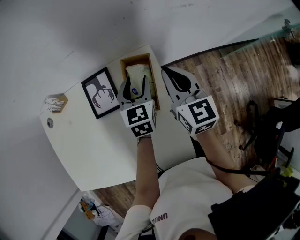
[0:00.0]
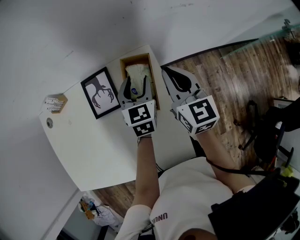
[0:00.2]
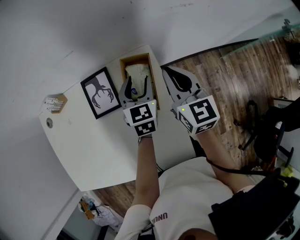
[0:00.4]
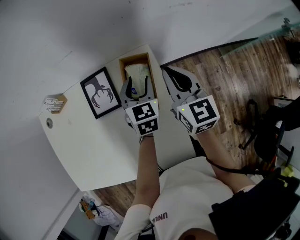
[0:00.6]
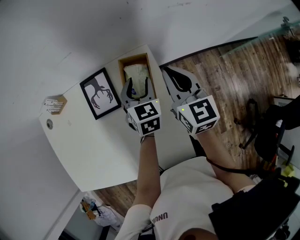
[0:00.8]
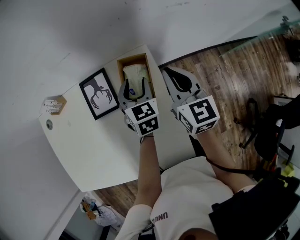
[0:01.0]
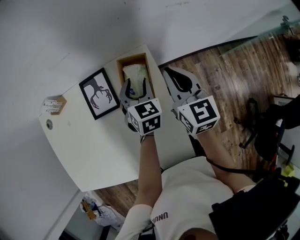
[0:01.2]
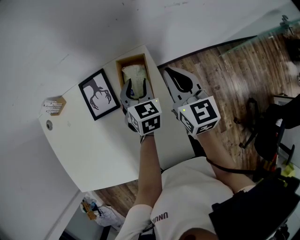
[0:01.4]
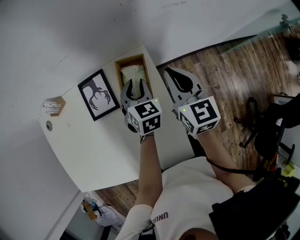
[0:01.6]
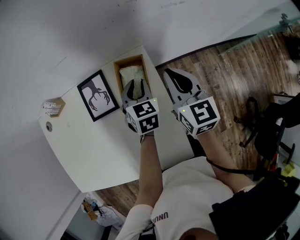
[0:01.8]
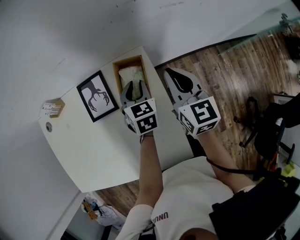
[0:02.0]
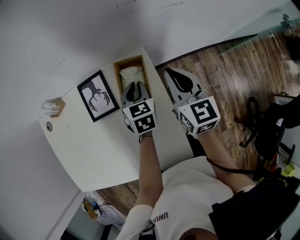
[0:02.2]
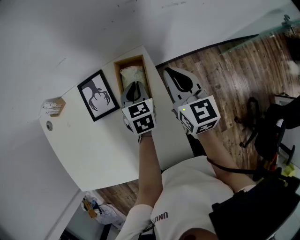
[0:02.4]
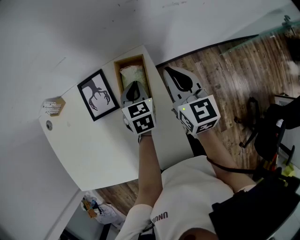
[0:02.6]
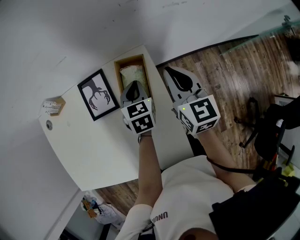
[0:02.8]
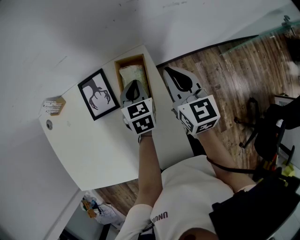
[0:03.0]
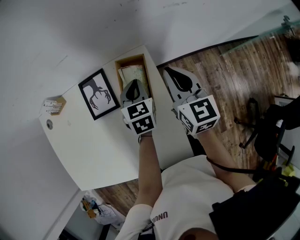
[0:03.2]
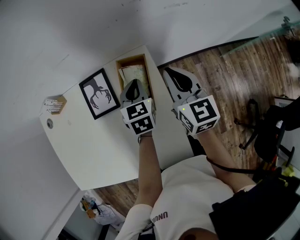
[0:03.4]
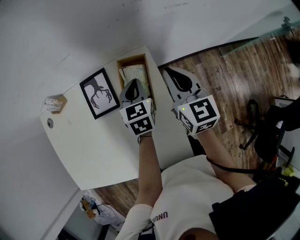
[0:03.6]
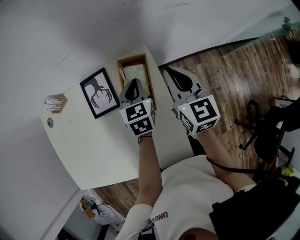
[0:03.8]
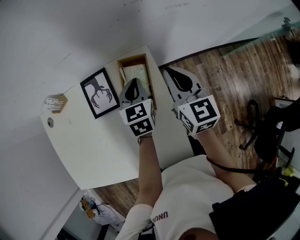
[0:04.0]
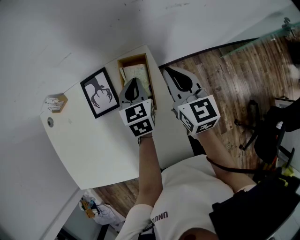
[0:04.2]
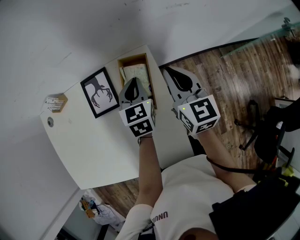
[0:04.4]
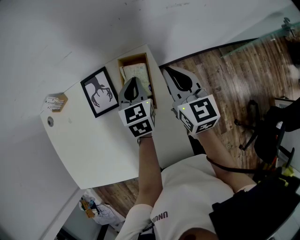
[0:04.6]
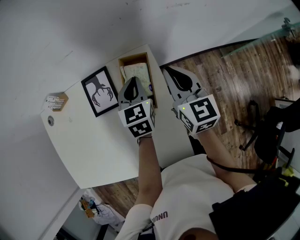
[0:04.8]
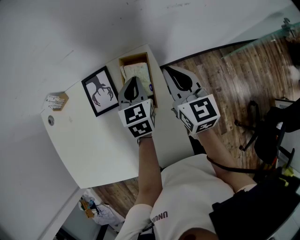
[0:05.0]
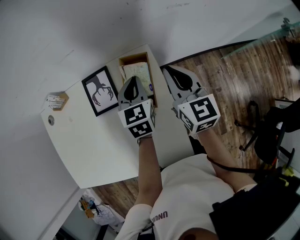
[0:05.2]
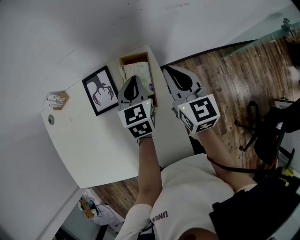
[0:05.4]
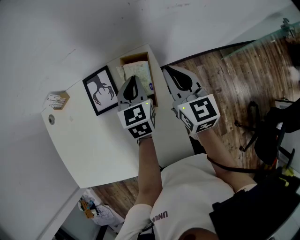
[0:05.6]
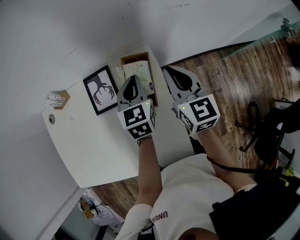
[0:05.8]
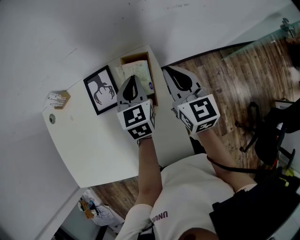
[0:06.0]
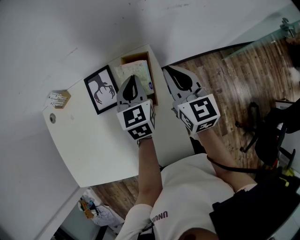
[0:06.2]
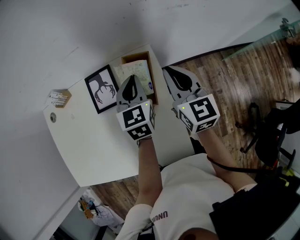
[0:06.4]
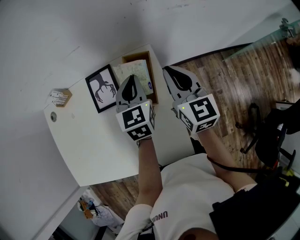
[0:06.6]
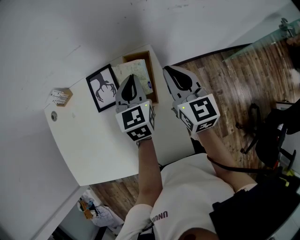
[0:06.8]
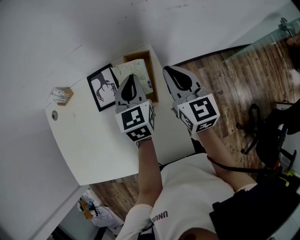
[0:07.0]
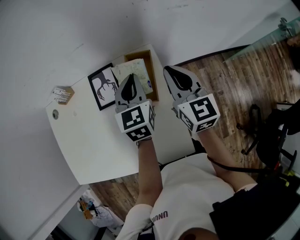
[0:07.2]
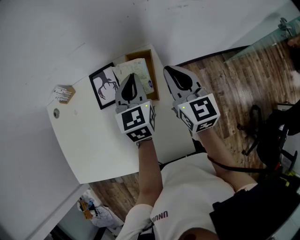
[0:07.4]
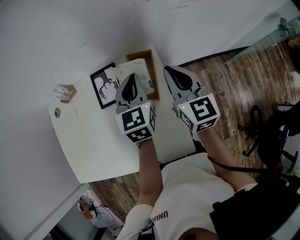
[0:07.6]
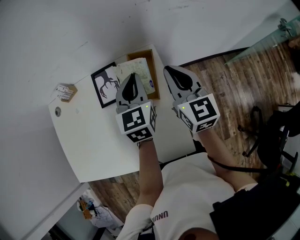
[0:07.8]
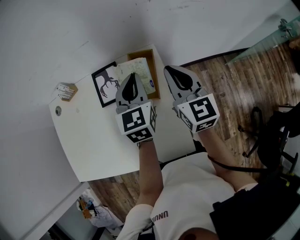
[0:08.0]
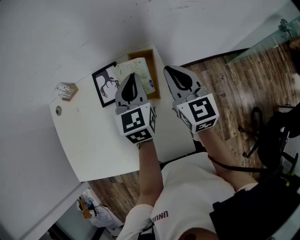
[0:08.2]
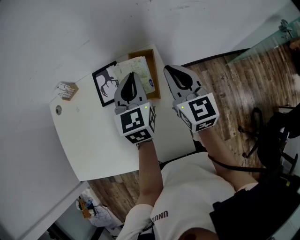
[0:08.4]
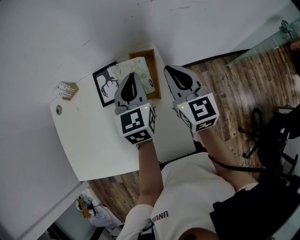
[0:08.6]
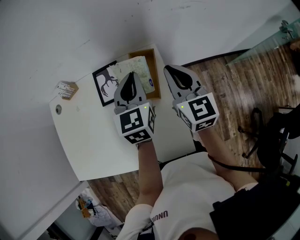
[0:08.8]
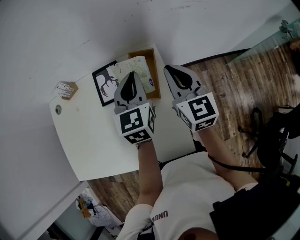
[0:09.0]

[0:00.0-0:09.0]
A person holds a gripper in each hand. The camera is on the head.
0:00.0 to 0:01.6: The left gripper closes.
0:01.6 to 0:03.0: The left gripper closes its fingers.
0:03.0 to 0:04.4: The grippers make only small movements.
0:04.4 to 0:06.0: The grippers stay close to where they were, moving slightly.
0:06.0 to 0:07.6: The left gripper heads upward, covering some 5 cm.
0:07.6 to 0:09.0: The grippers stay close to where they were, moving slightly.

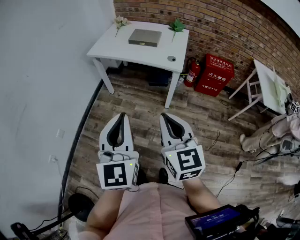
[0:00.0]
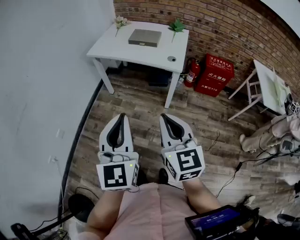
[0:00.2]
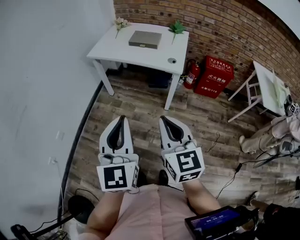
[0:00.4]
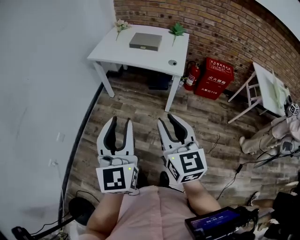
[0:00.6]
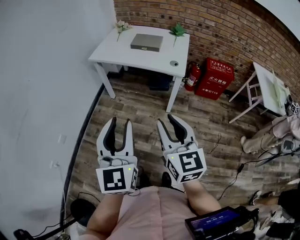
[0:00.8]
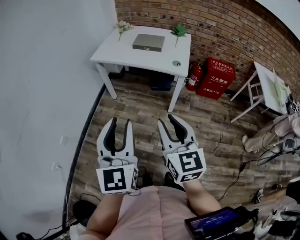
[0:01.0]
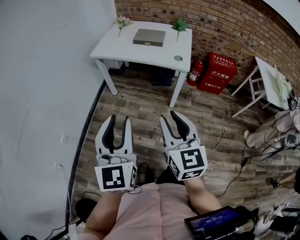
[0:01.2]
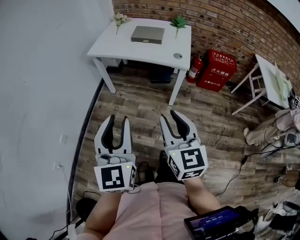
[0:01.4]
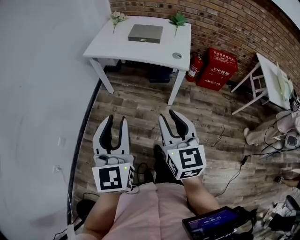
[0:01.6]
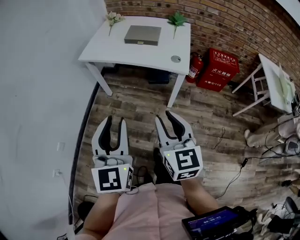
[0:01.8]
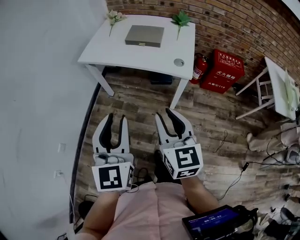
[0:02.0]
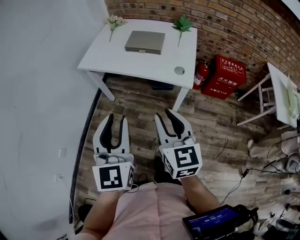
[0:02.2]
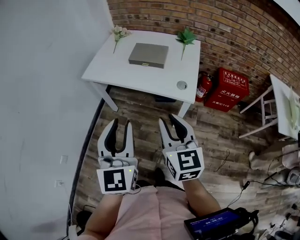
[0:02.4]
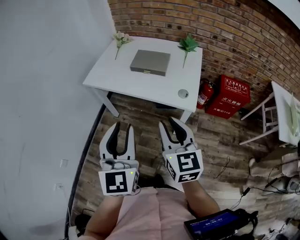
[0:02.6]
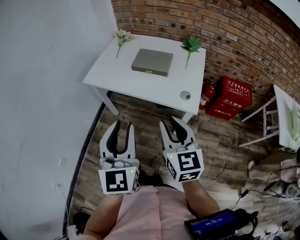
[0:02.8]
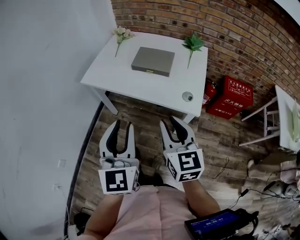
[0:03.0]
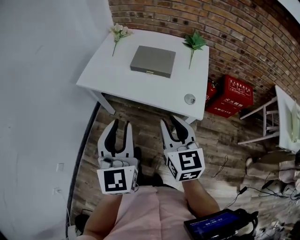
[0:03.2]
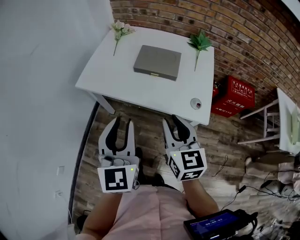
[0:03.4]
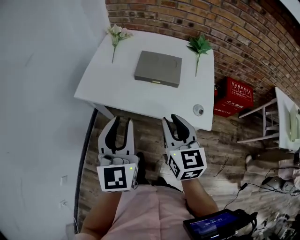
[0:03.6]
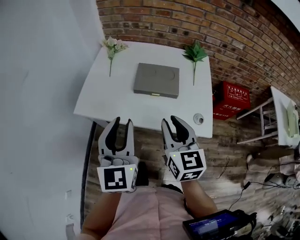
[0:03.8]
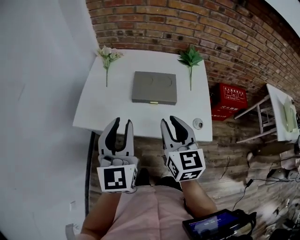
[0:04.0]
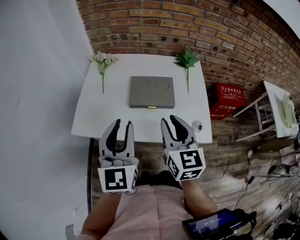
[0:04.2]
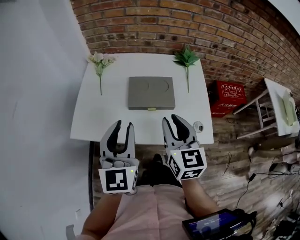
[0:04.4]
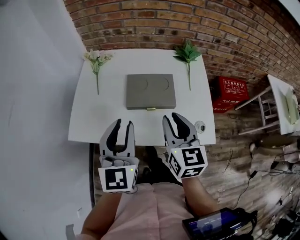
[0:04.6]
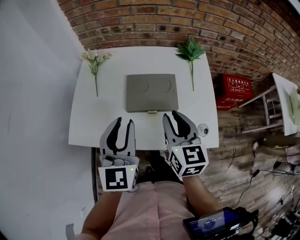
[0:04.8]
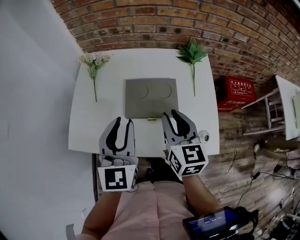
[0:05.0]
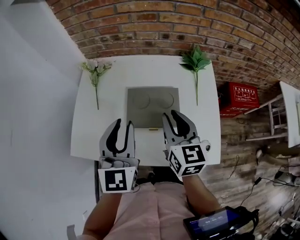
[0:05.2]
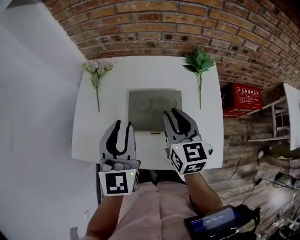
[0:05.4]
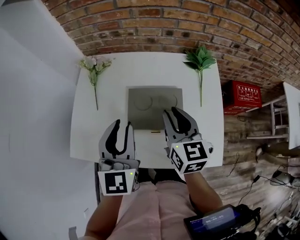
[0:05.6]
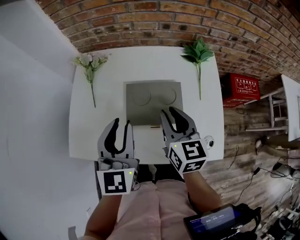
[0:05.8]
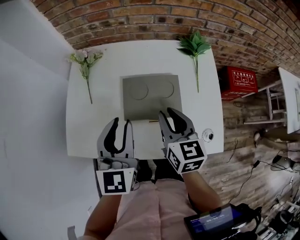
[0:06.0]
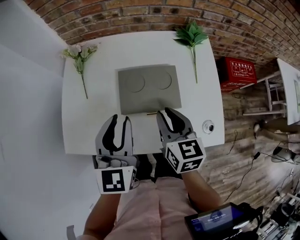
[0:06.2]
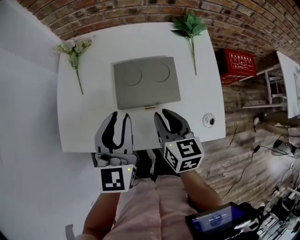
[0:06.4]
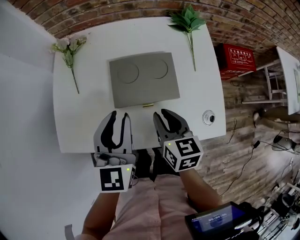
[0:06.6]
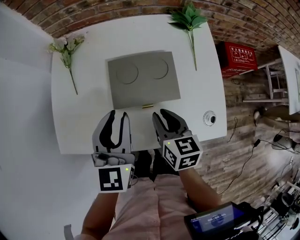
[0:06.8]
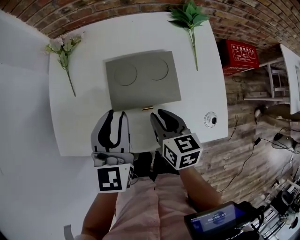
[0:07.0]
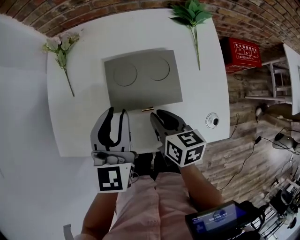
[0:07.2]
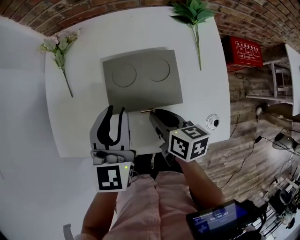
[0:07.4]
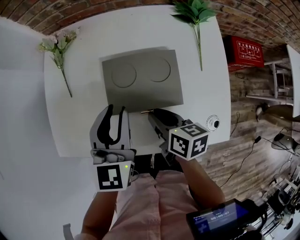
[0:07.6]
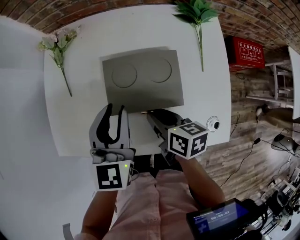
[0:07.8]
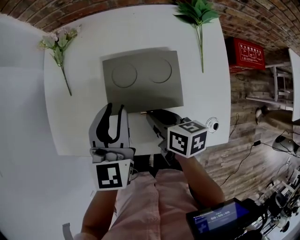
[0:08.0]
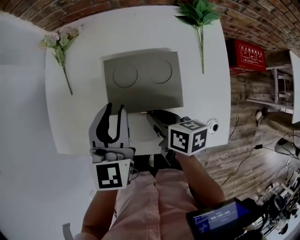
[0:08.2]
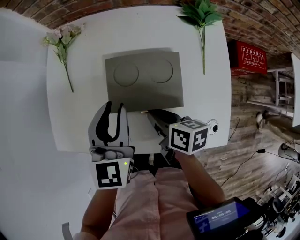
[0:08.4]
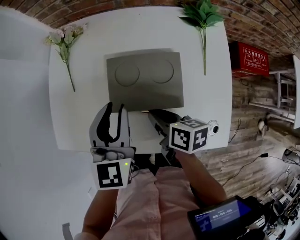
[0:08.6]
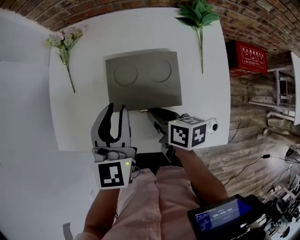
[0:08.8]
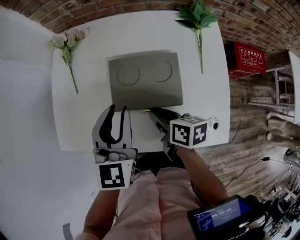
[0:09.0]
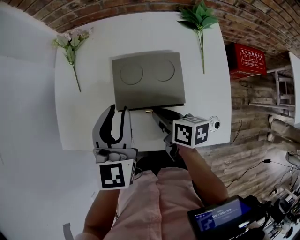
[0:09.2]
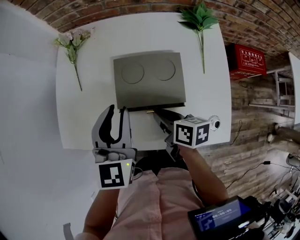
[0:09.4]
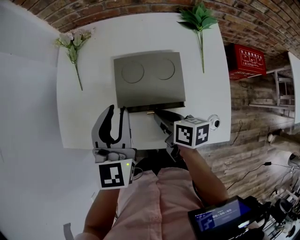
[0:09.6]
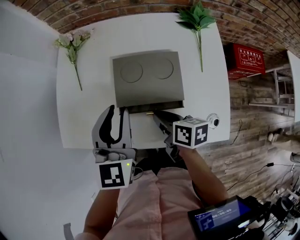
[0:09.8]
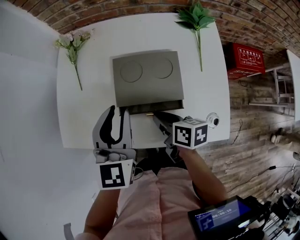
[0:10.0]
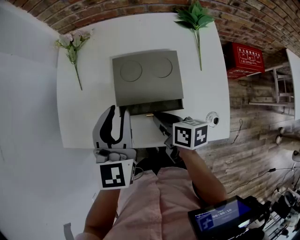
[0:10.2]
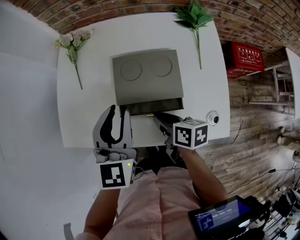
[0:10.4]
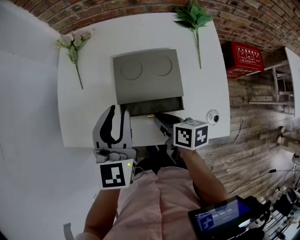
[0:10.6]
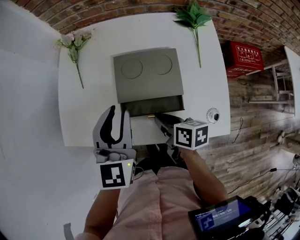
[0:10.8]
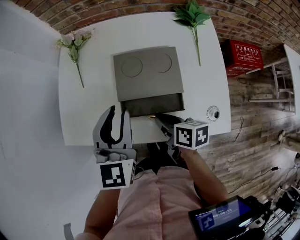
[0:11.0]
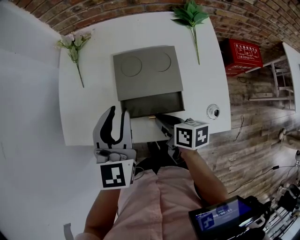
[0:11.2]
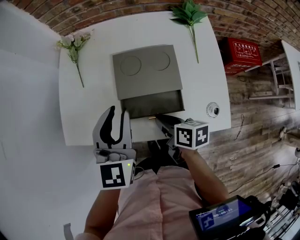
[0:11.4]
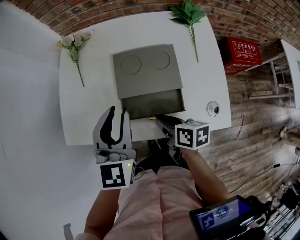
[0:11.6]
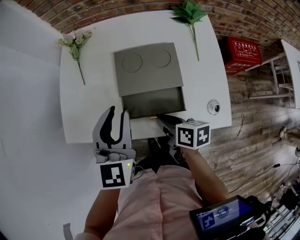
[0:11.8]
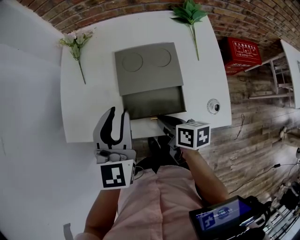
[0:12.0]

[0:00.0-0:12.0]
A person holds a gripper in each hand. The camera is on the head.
0:00.0 to 0:01.6: The left gripper is displaced forward and to the left by some 10 cm, and opens its fingers. The right gripper is displaced forward by approximately 5 cm, and opens its fingers.
0:01.6 to 0:03.0: The grippers both shift forward by some 25 cm.
0:03.0 to 0:04.4: Both grippers travel together forward, about 25 cm.
0:04.4 to 0:06.0: The two grippers go some 15 cm forward and downward.
0:06.0 to 0:07.6: The right gripper is displaced downward by some 15 cm, and swivels some 40 degrees, while the left gripper goes some 10 cm downward.
0:07.6 to 0:10.4: The grippers make only small movements.
0:10.4 to 0:12.0: The left gripper changes place by about 5 cm, while the right gripper goes approximately 5 cm backward.

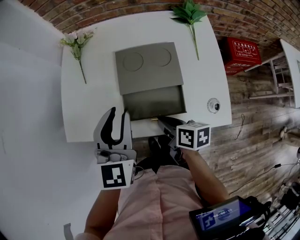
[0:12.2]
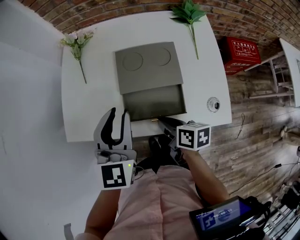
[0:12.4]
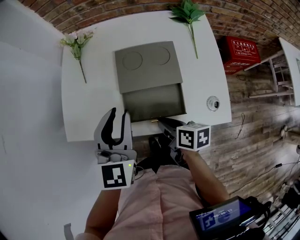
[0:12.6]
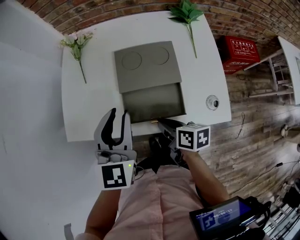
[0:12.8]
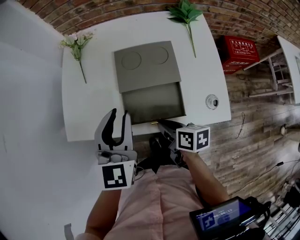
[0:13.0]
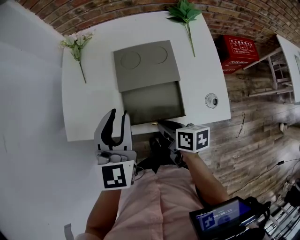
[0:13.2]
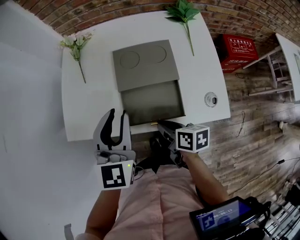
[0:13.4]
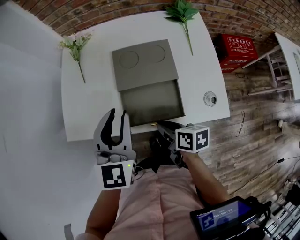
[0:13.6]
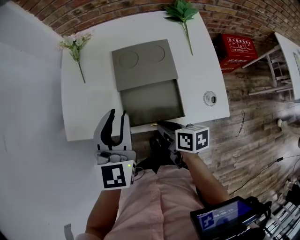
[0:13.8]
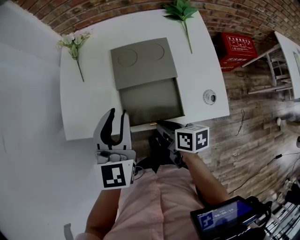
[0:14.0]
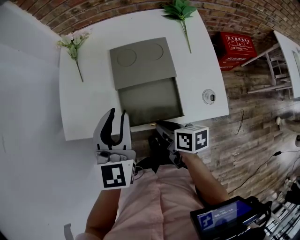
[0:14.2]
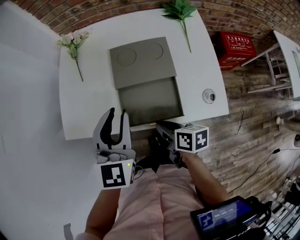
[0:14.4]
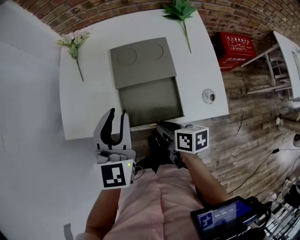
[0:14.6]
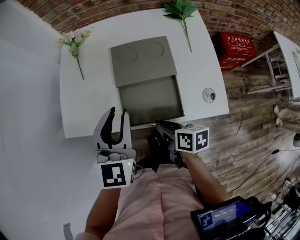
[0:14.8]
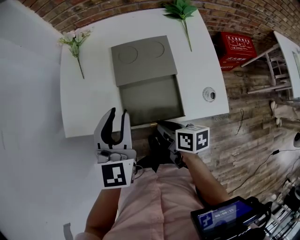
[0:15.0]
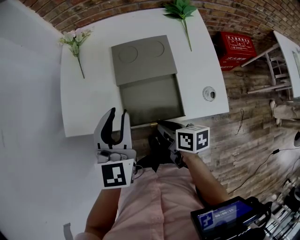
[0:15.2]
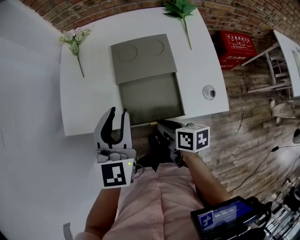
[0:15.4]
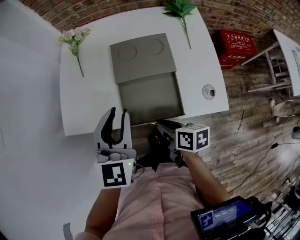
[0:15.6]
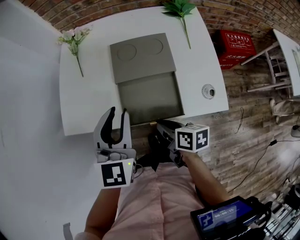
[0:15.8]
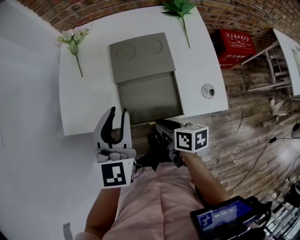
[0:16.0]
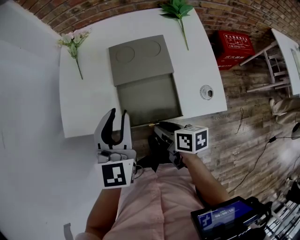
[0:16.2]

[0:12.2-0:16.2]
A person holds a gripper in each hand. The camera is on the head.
0:12.2 to 0:14.8: There are only small adjustments of the grippers.
0:14.8 to 0:16.2: The two grippers keep their place.
